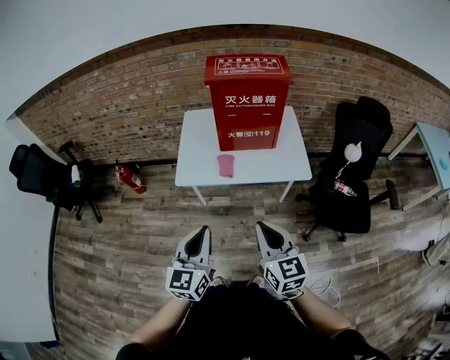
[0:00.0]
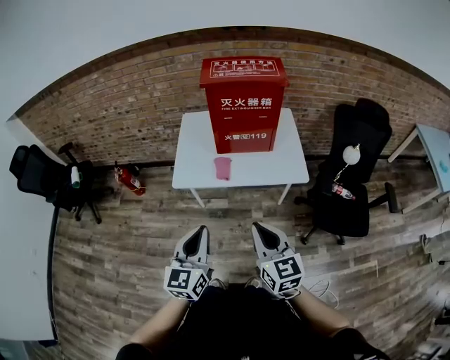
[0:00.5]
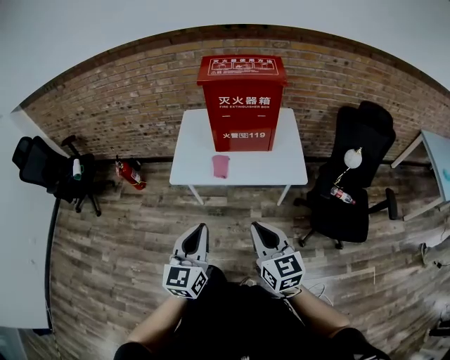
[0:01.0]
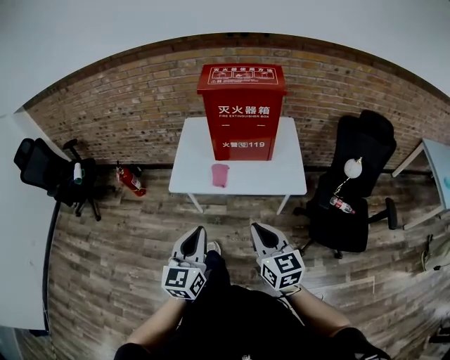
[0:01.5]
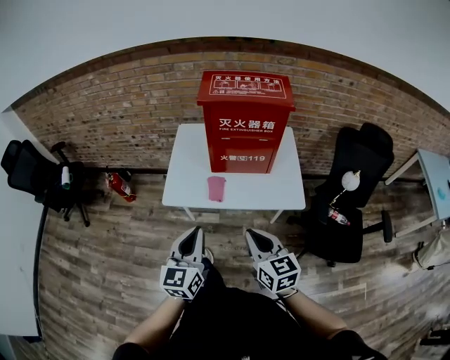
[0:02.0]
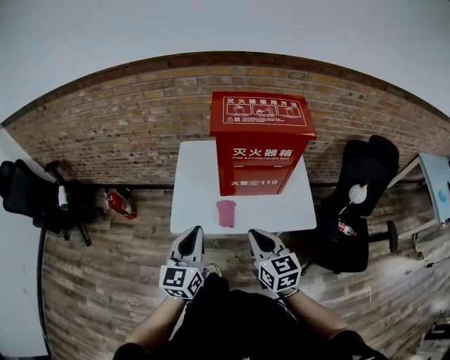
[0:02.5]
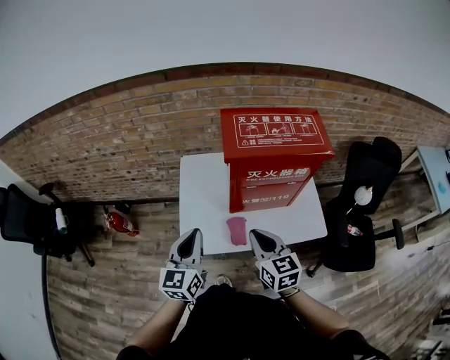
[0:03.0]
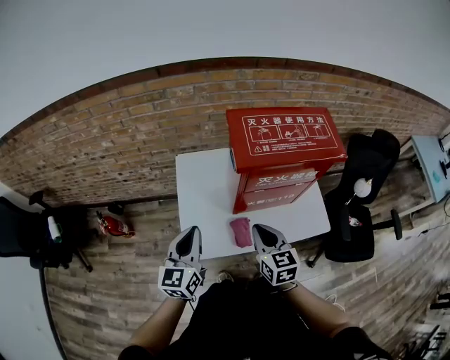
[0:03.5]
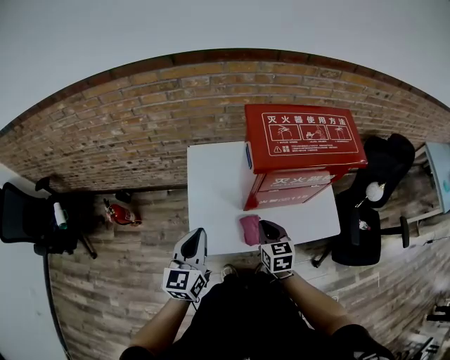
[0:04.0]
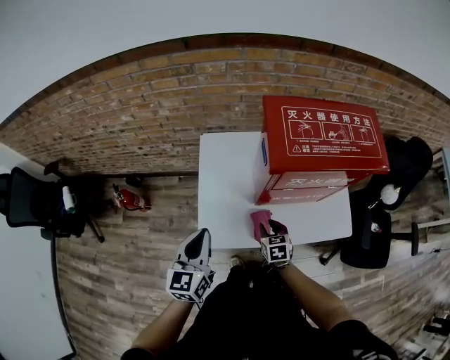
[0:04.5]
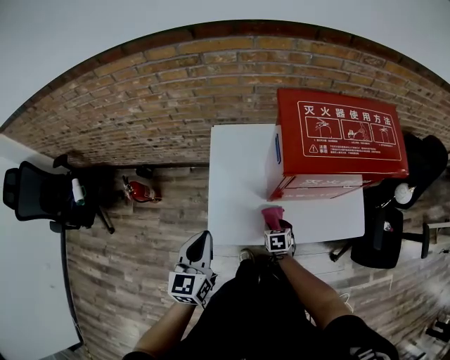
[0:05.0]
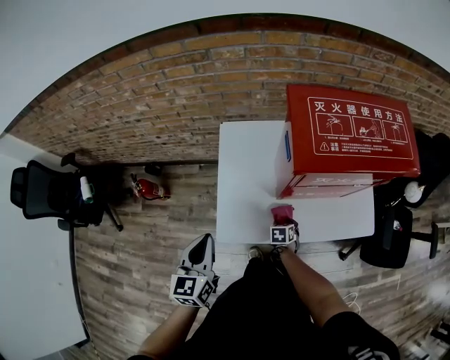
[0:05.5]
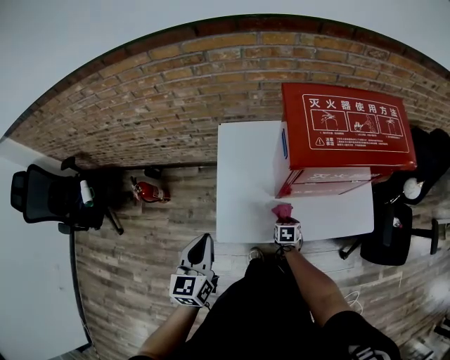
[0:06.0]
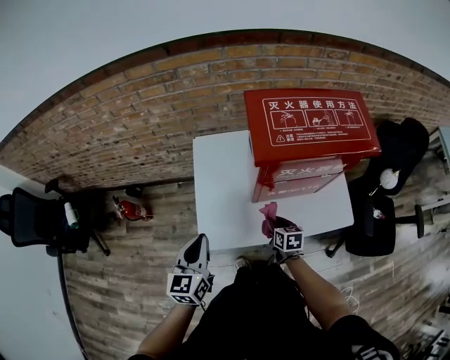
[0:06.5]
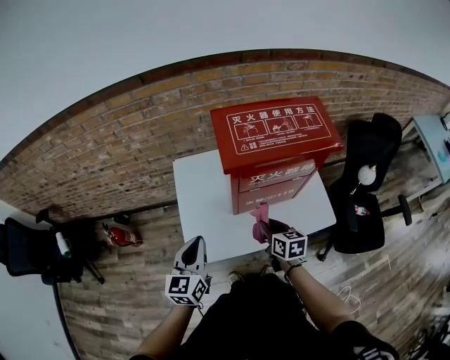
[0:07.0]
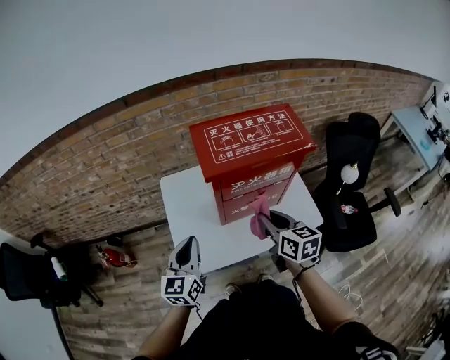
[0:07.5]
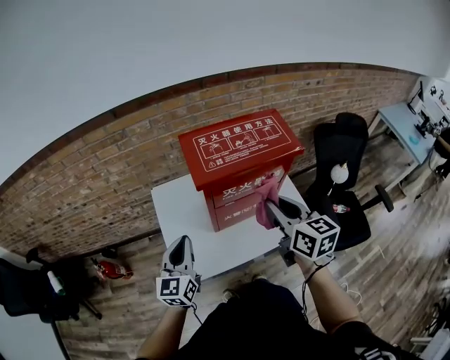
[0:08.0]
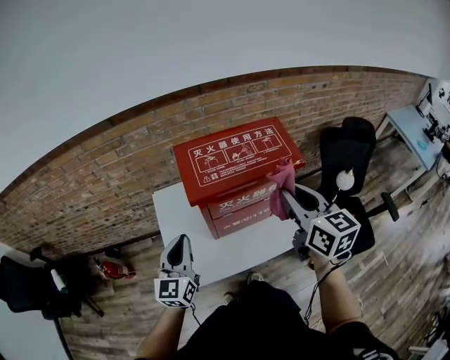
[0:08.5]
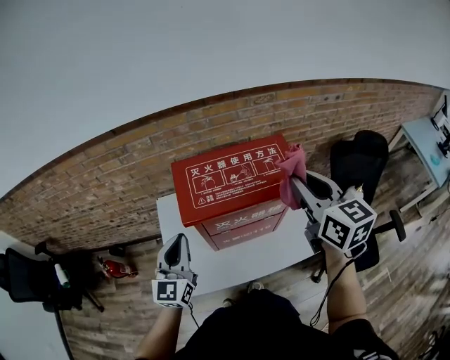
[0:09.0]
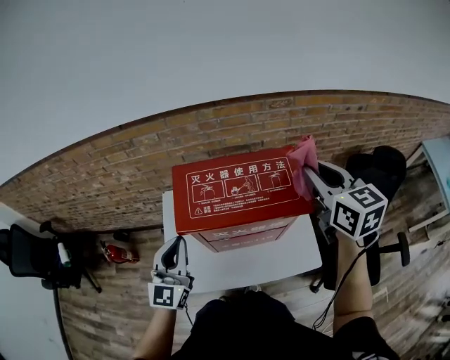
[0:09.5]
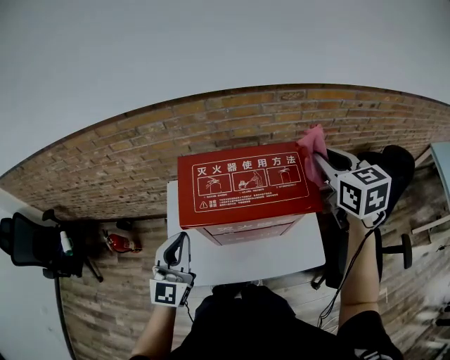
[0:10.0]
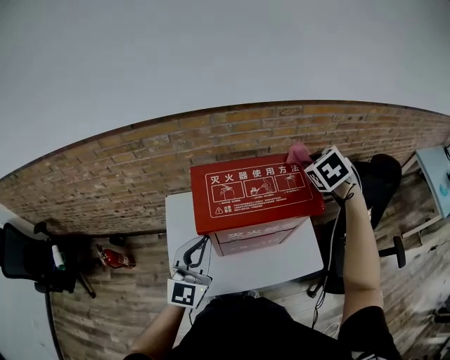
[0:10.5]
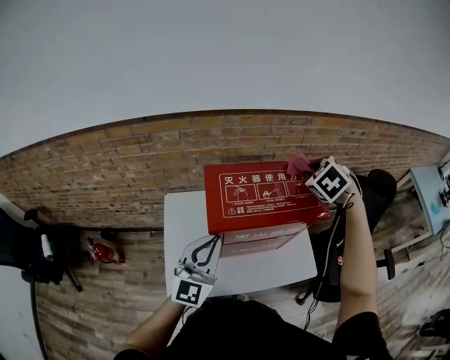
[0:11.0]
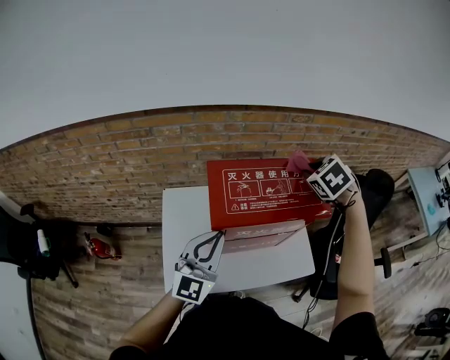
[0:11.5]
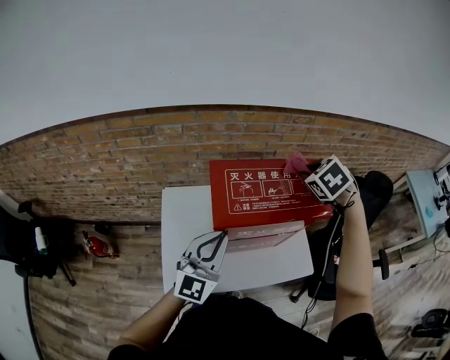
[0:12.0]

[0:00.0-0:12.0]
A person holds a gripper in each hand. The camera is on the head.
0:00.0 to 0:02.0: The grippers both shift forward by roughly 10 cm.
0:02.0 to 0:04.0: The left gripper heads forward and to the left, covering roughly 35 cm, while the right gripper goes roughly 35 cm forward, and rotates some 20 degrees.
0:04.0 to 0:06.0: The right gripper is displaced downward by approximately 25 cm, swivels roughly 30 degrees, and opens, then closes once more, while the left gripper moves to the left, roughly 5 cm.
0:06.0 to 0:08.0: The left gripper shifts approximately 15 cm to the right, upward and forward, and turns by roughly 20 degrees. Meanwhile the right gripper travels upward by about 50 cm, and points its fingers roughly 50 degrees further upward.
0:08.0 to 0:10.0: The left gripper goes roughly 15 cm forward, to the right and upward, and rotates roughly 20 degrees, while the right gripper shifts about 30 cm forward and to the right, and rotates some 20 degrees.
0:10.0 to 0:12.0: The right gripper is displaced to the left and downward by about 10 cm, and tips its fingers downward by some 30 degrees.

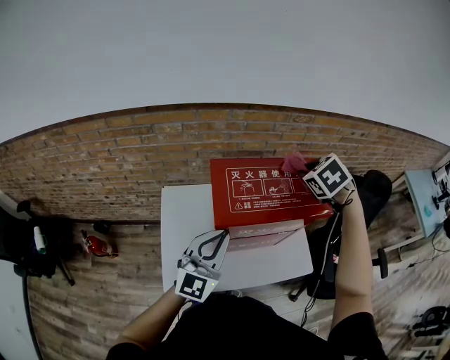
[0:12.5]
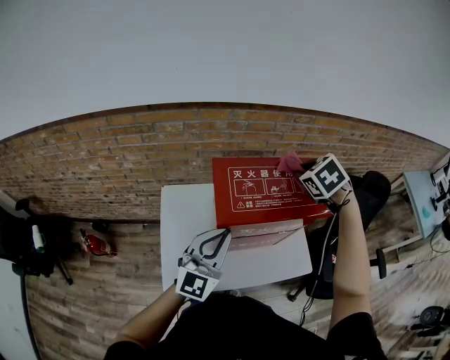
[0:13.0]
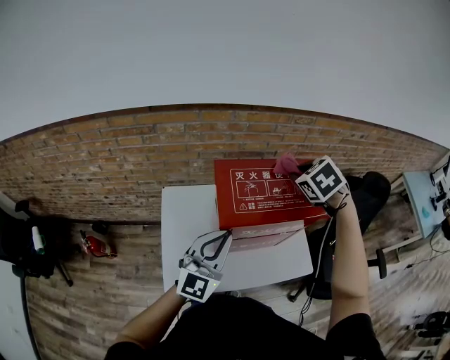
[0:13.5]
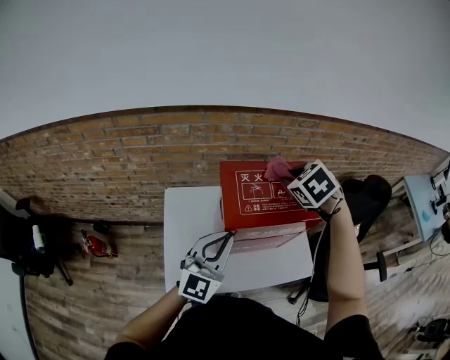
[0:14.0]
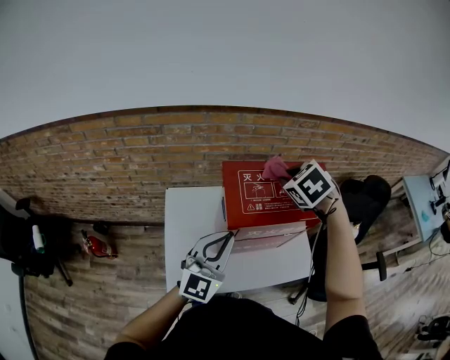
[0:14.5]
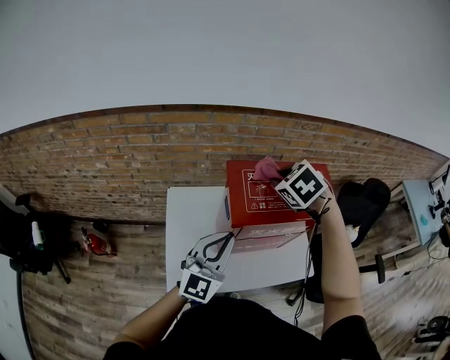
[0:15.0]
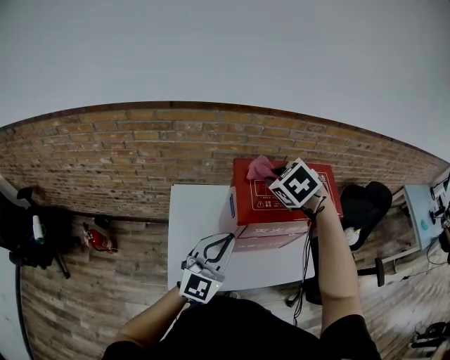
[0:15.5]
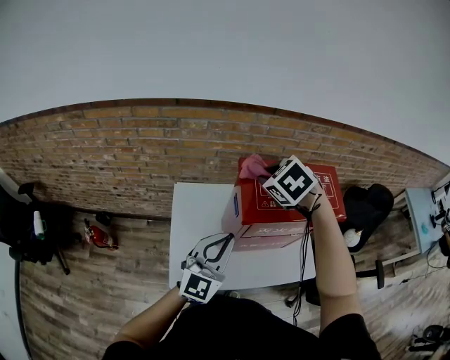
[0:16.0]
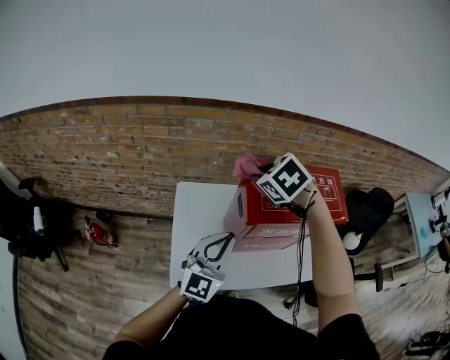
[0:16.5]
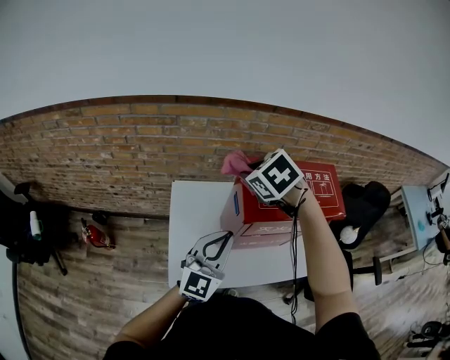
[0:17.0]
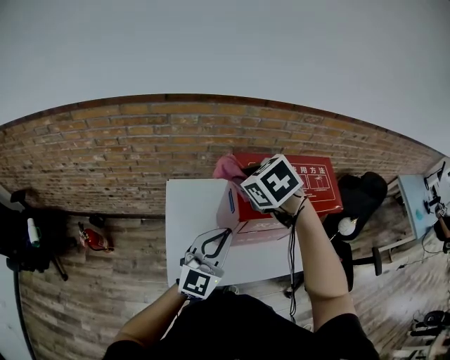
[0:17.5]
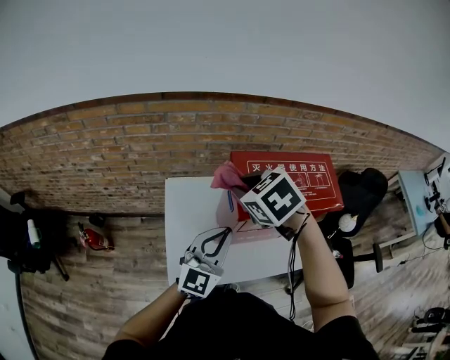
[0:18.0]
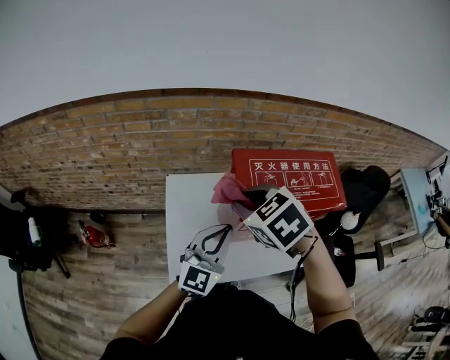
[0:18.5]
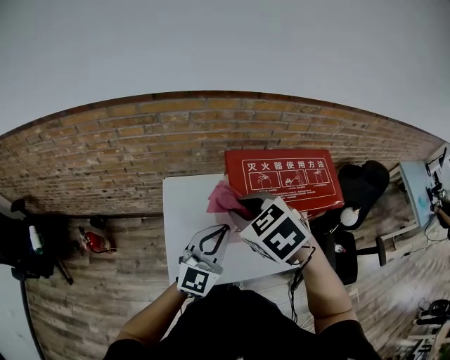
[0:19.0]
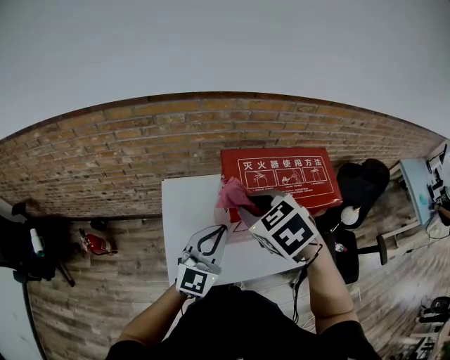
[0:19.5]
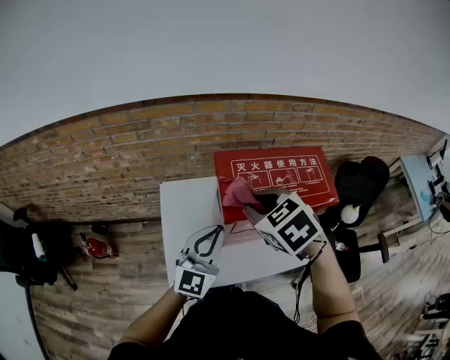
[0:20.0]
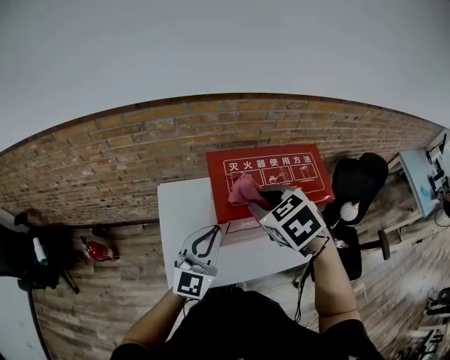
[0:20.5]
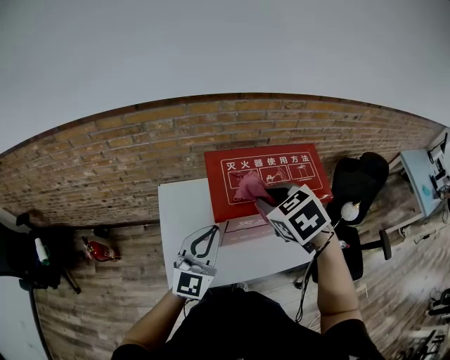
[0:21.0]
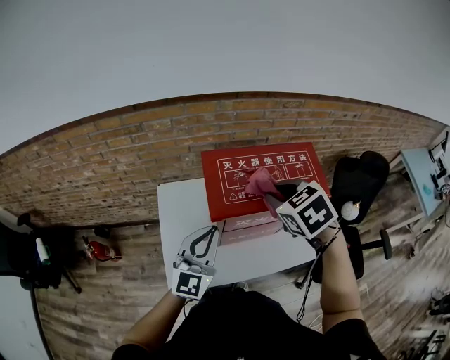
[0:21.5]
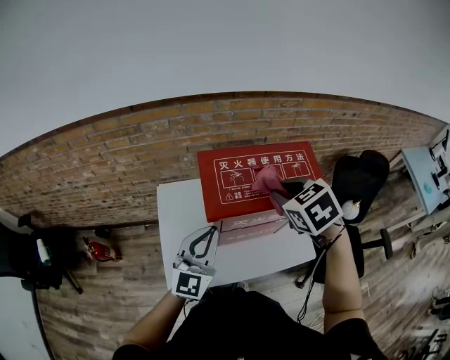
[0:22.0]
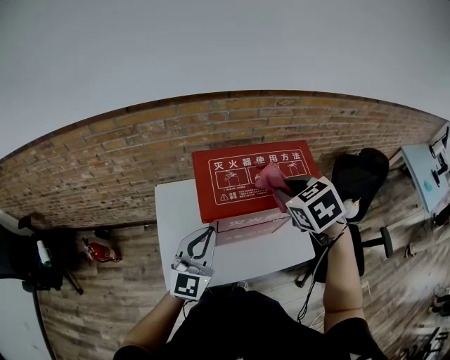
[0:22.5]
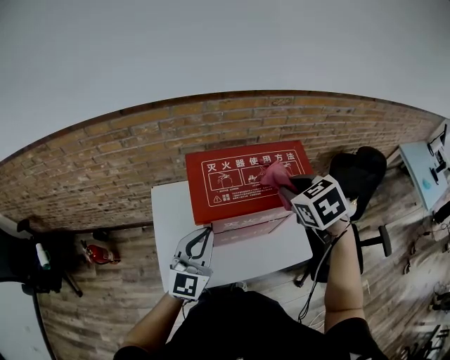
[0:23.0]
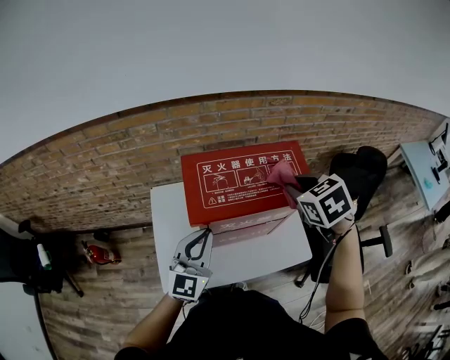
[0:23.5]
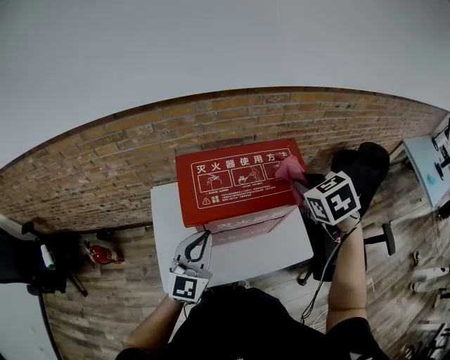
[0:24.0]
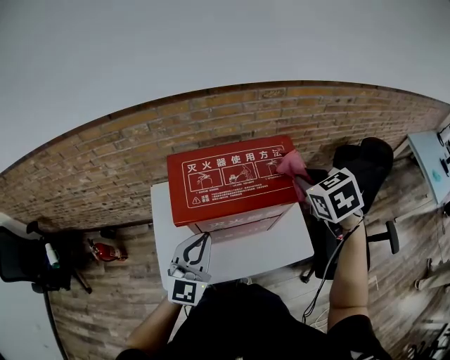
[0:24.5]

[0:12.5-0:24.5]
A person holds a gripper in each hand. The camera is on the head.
0:12.5 to 0:14.5: The right gripper is displaced to the left by some 10 cm.
0:14.5 to 0:16.5: The right gripper moves to the left, about 15 cm, while the left gripper ends up roughly 5 cm from where it was.
0:16.5 to 0:18.5: The right gripper goes approximately 10 cm backward.
0:18.5 to 0:20.5: The right gripper travels to the right by roughly 10 cm.
0:20.5 to 0:22.5: The right gripper is displaced to the right by some 10 cm.
0:22.5 to 0:24.5: The right gripper goes about 10 cm to the right. Meanwhile the left gripper shifts approximately 5 cm to the right.

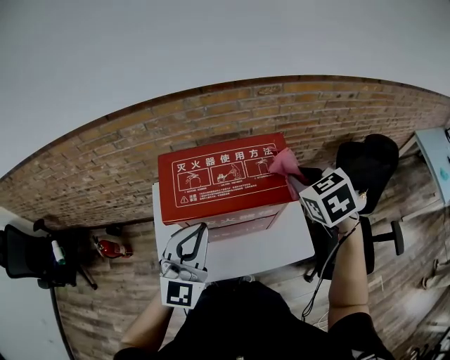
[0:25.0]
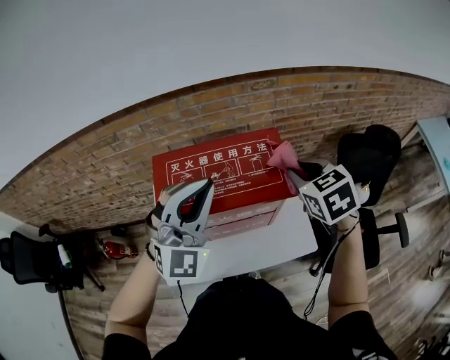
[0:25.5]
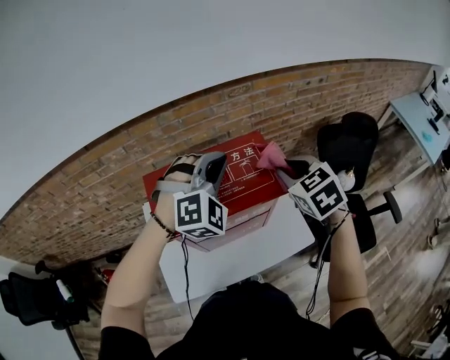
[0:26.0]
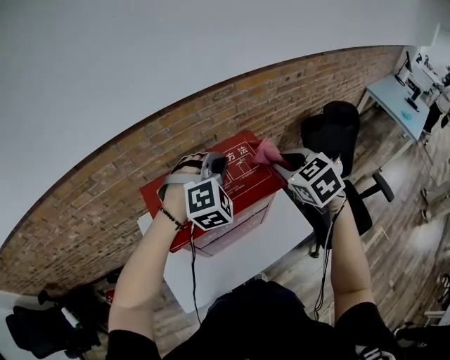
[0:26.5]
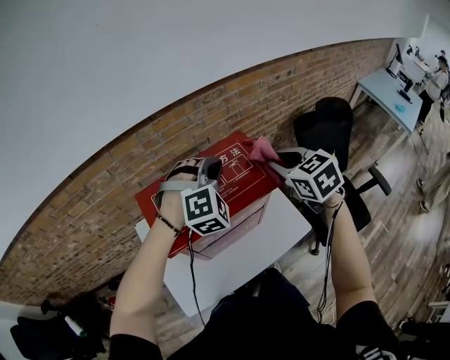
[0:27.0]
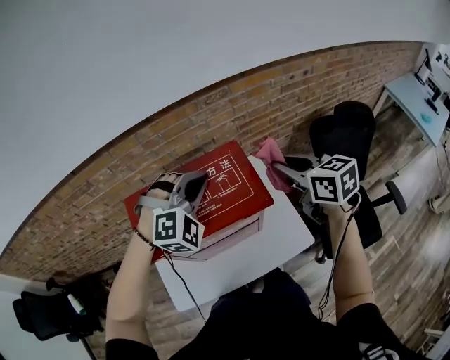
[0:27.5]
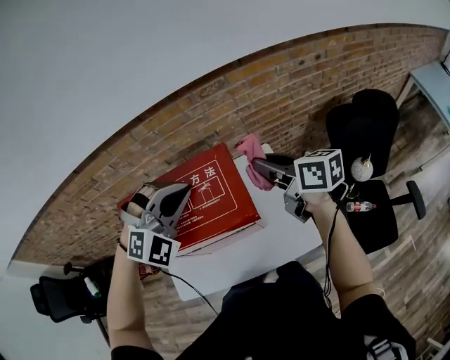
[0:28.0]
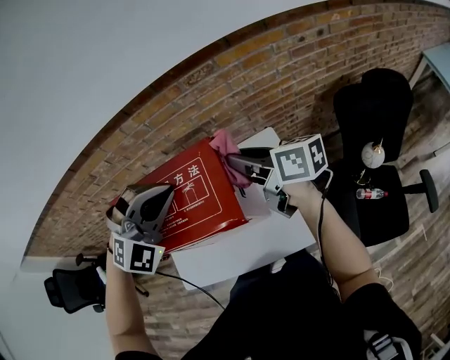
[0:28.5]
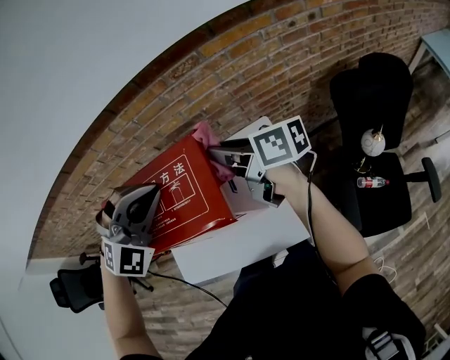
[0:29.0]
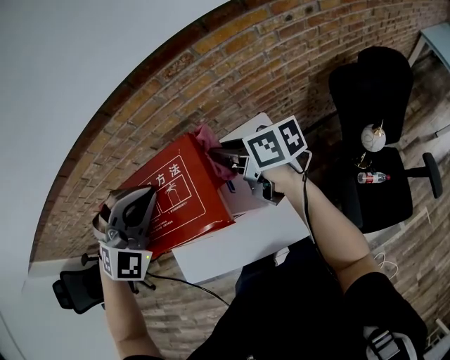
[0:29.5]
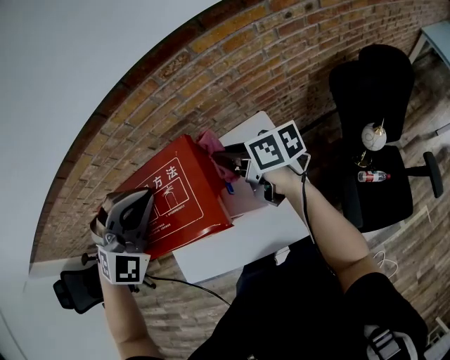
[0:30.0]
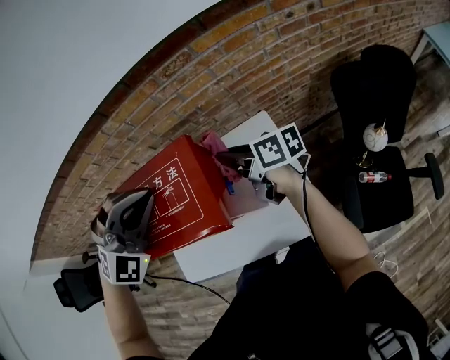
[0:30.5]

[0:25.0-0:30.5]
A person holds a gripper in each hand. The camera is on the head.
0:25.0 to 0:27.0: The left gripper moves forward and to the right, roughly 20 cm, and tips its fingers downward by roughly 40 degrees.
0:27.0 to 0:28.5: The right gripper heads forward and downward, covering some 10 cm, and rotates roughly 60 degrees.
0:28.5 to 0:30.5: The right gripper heads downward, covering roughly 10 cm.
